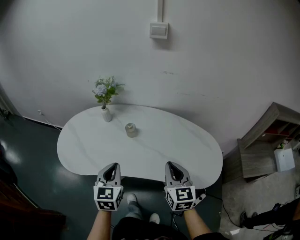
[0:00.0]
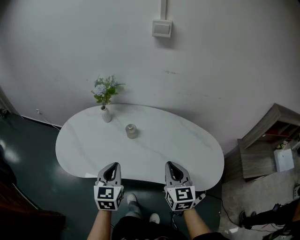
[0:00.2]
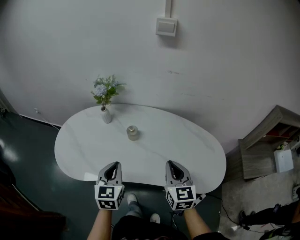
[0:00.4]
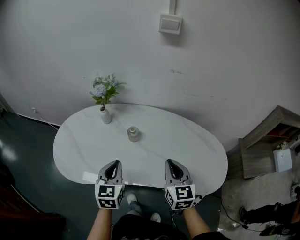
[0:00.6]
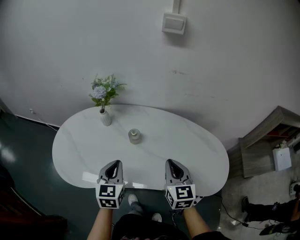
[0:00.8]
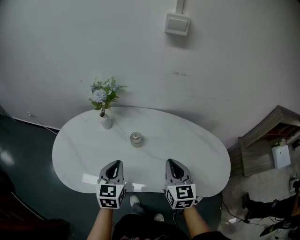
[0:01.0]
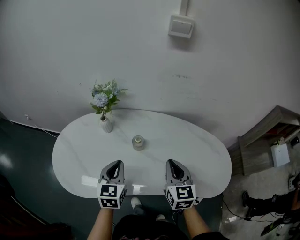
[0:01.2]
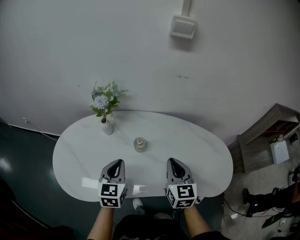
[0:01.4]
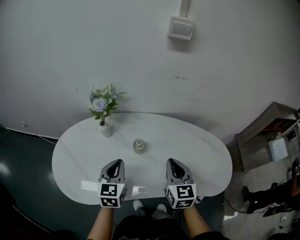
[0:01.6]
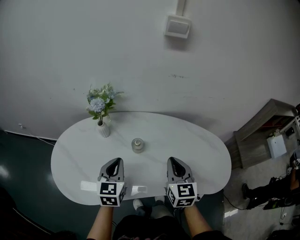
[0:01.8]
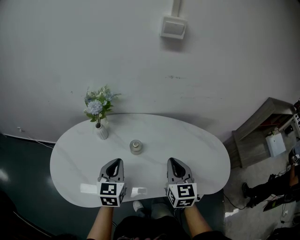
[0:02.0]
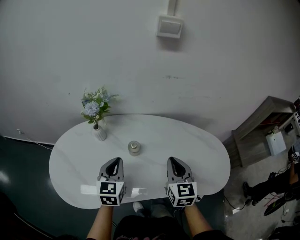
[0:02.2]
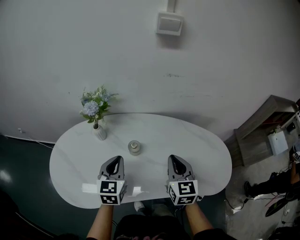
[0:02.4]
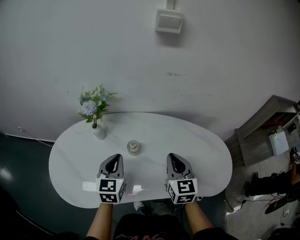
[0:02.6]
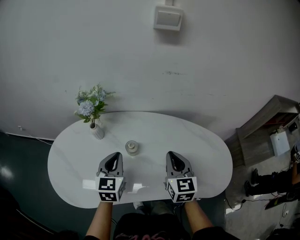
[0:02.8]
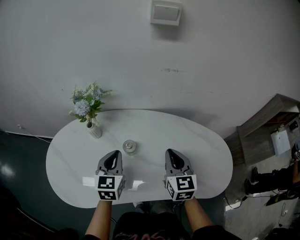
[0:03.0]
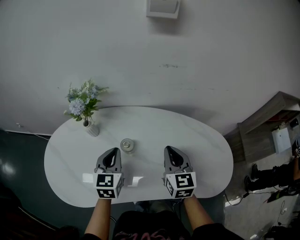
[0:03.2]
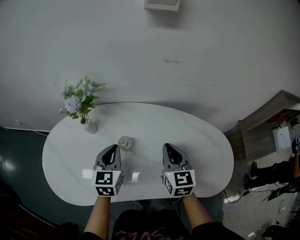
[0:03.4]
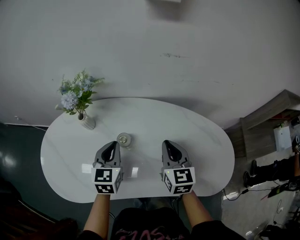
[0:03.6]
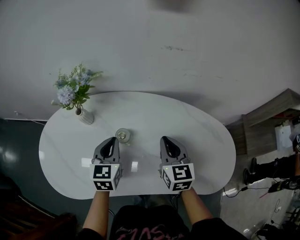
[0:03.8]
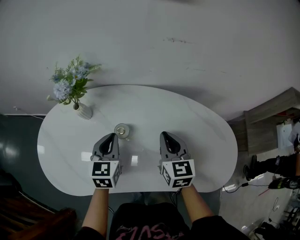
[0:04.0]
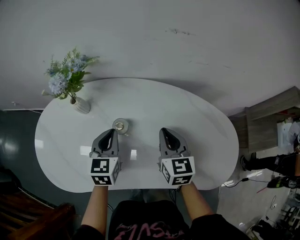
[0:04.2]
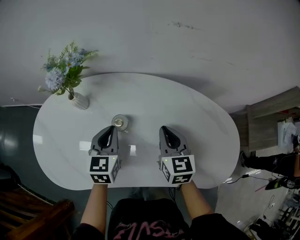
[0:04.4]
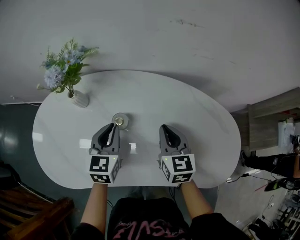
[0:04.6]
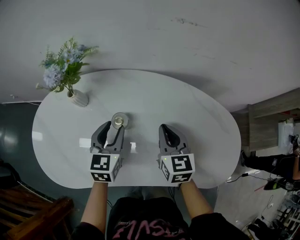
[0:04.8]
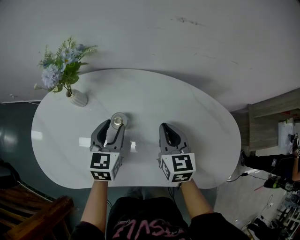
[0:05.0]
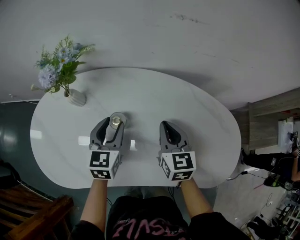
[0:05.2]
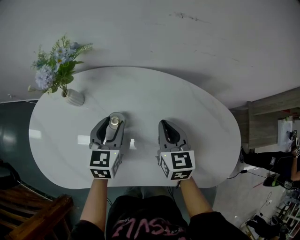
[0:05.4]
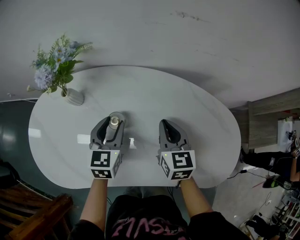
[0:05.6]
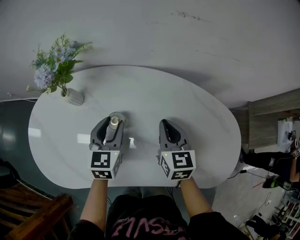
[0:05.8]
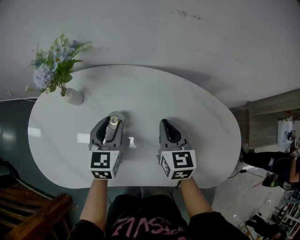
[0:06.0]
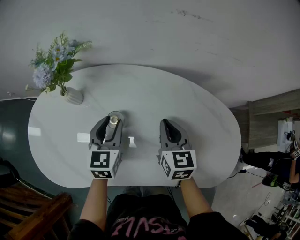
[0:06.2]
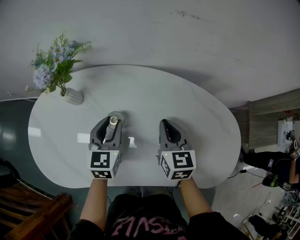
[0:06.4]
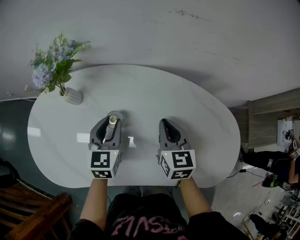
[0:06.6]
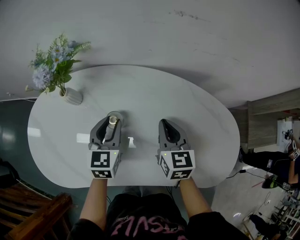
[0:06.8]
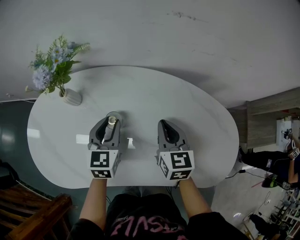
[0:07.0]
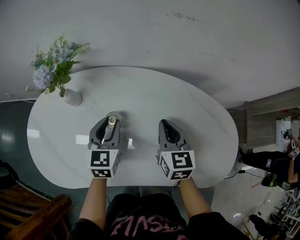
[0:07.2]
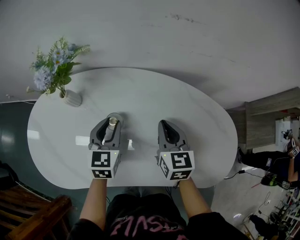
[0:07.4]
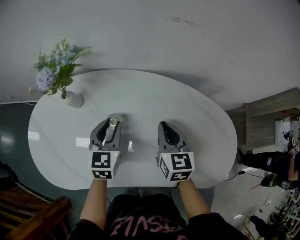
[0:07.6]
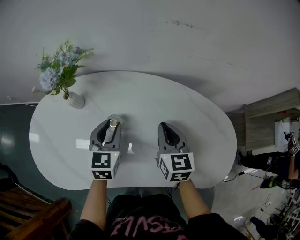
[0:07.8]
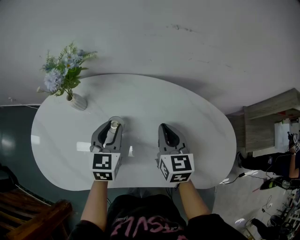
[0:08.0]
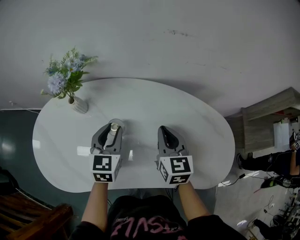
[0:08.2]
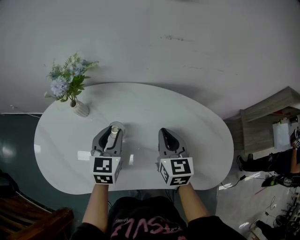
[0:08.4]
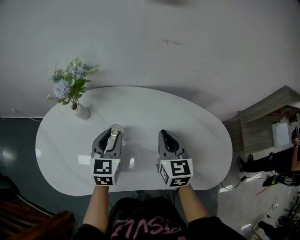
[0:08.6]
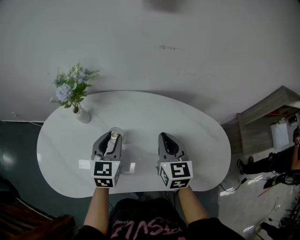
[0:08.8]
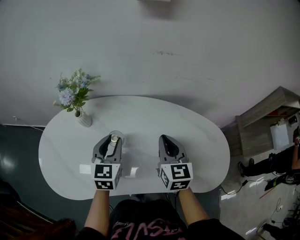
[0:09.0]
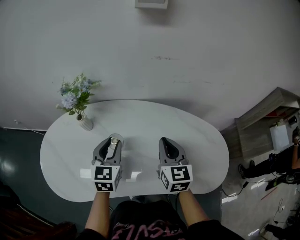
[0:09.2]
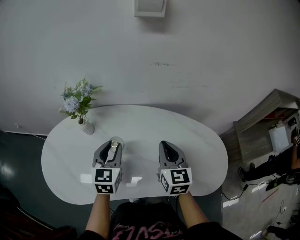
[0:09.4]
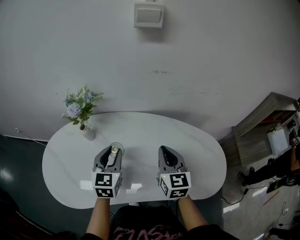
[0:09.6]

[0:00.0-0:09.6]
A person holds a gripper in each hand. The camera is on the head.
0:00.0 to 0:01.6: Both grippers move forward and to the left, some 15 cm.
0:01.6 to 0:03.2: Both grippers move forward, approximately 10 cm.
0:03.2 to 0:04.8: The two grippers go roughly 5 cm downward. The left gripper opens.
0:04.8 to 0:08.0: There are only small adjustments of the grippers.
0:08.0 to 0:09.6: The grippers both shift upward by about 10 cm.

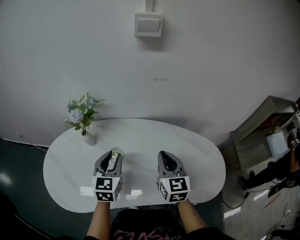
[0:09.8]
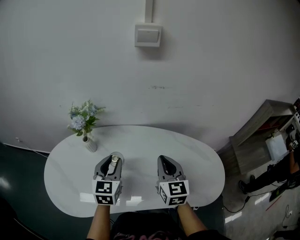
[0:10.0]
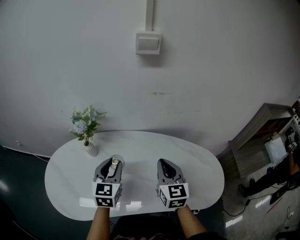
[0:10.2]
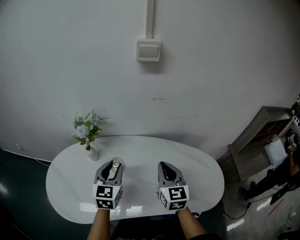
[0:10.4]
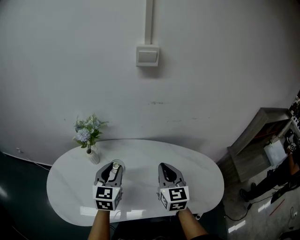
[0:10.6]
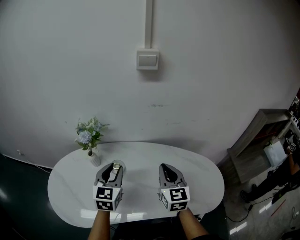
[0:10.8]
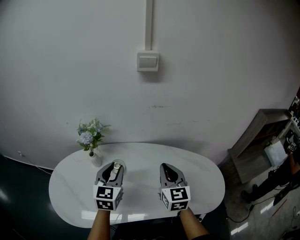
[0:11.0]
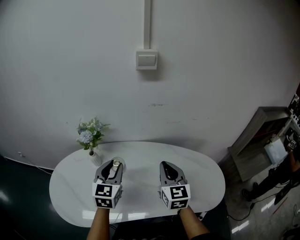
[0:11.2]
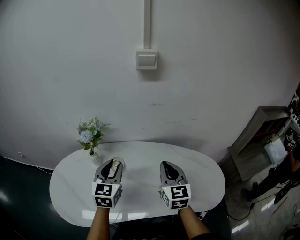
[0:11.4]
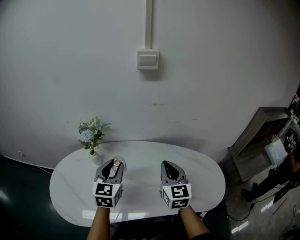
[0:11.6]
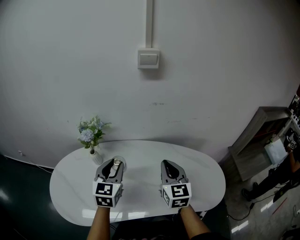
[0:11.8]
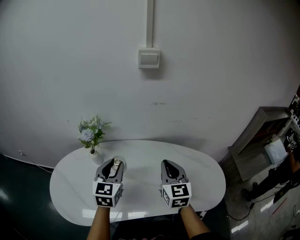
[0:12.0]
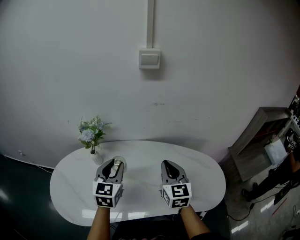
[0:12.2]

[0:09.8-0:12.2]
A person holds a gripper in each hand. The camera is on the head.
0:09.8 to 0:11.0: The two grippers go roughly 5 cm upward.
0:11.0 to 0:12.2: Both grippers stay about where they are.

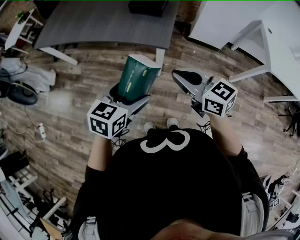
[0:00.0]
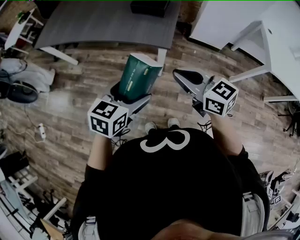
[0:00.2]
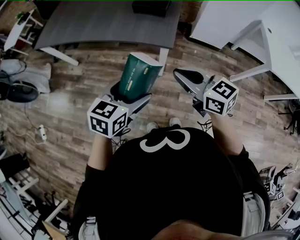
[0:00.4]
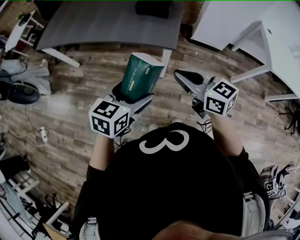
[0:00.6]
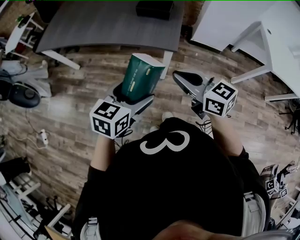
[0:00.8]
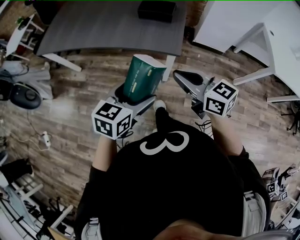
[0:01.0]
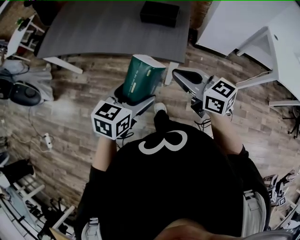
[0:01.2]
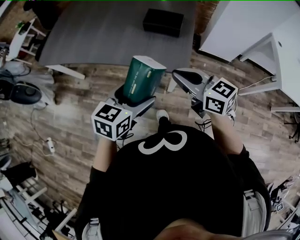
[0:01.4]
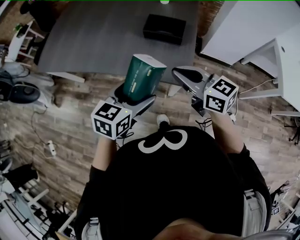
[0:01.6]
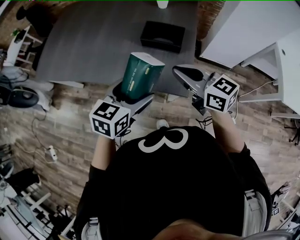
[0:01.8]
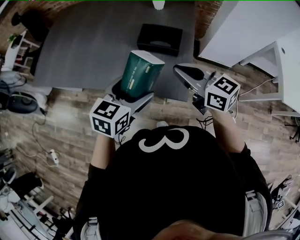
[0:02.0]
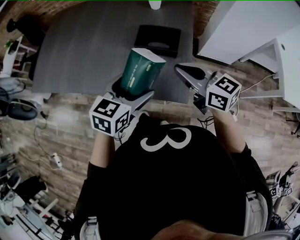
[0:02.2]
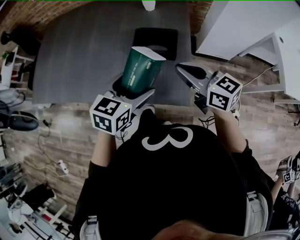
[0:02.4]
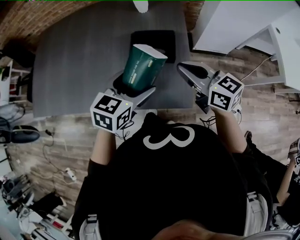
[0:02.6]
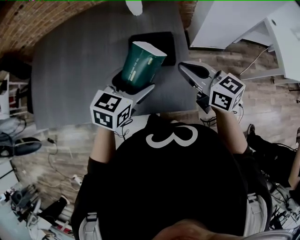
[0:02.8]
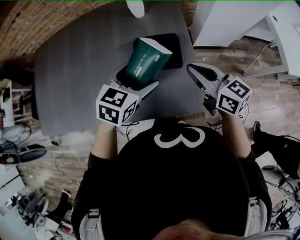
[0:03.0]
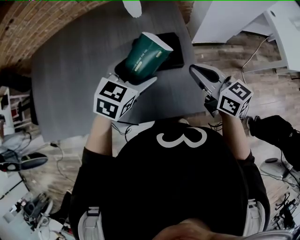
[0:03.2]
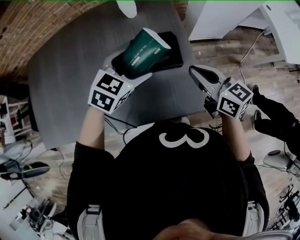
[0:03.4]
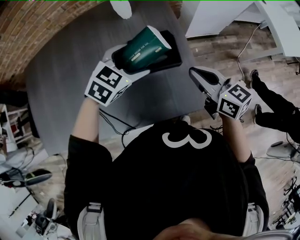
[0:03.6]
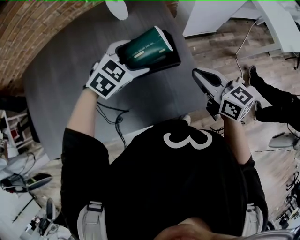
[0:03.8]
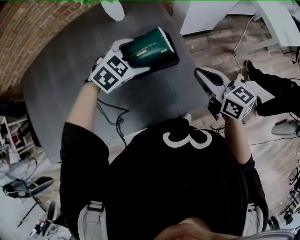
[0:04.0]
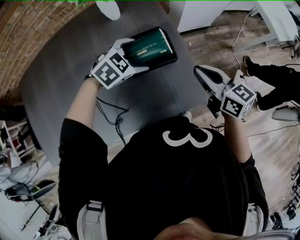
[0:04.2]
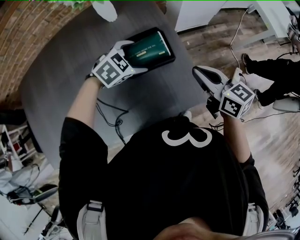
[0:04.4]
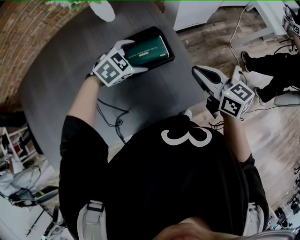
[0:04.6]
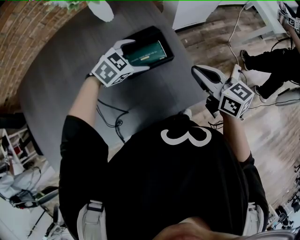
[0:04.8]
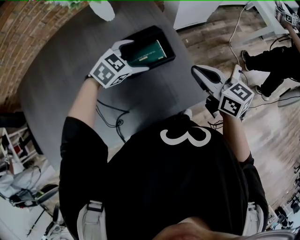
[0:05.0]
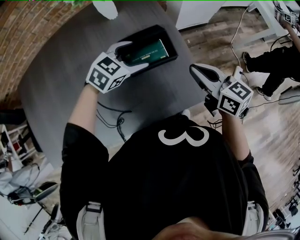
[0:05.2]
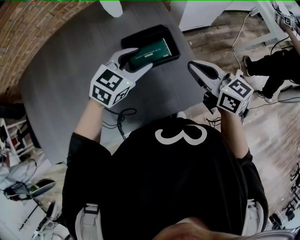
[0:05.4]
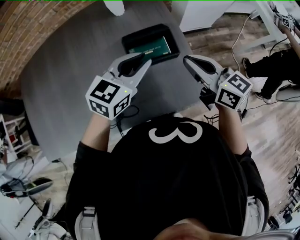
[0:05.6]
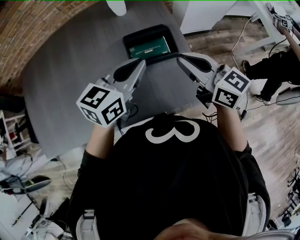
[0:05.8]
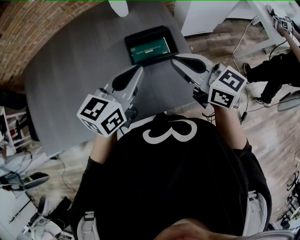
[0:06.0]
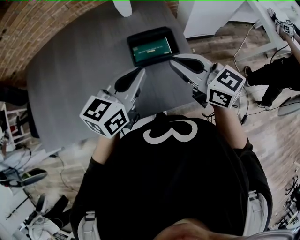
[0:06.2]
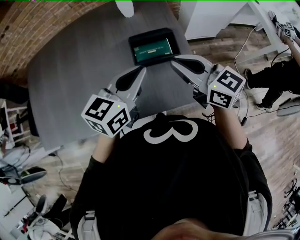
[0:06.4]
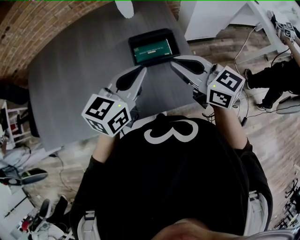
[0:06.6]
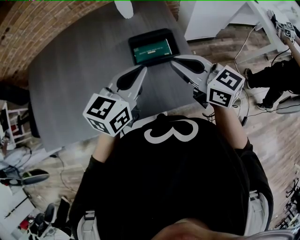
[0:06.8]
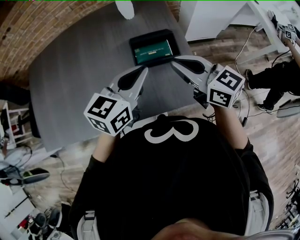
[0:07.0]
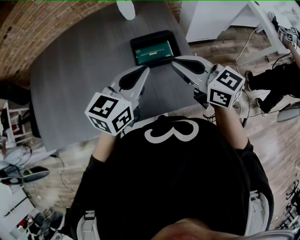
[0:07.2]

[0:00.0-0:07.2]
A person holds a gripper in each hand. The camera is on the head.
0:00.0 to 0:01.4: The grippers both shift forward by approximately 15 cm.
0:01.4 to 0:02.8: The two grippers go roughly 25 cm forward. The right gripper turns by about 20 degrees.
0:02.8 to 0:04.4: The left gripper moves about 15 cm, and rotates some 50 degrees, while the right gripper goes some 5 cm downward, and changes its angle by approximately 30 degrees.
0:04.4 to 0:05.8: The left gripper shifts some 15 cm upward and backward, points its fingers about 40 degrees further upward, and closes up. Meanwhile the right gripper heads to the left and upward, covering roughly 10 cm.
0:05.8 to 0:07.2: The grippers make only small movements.

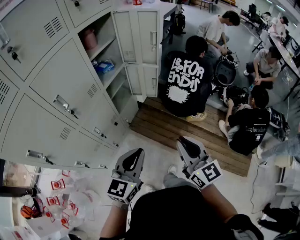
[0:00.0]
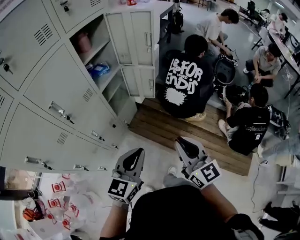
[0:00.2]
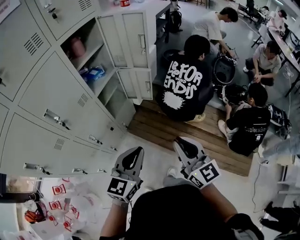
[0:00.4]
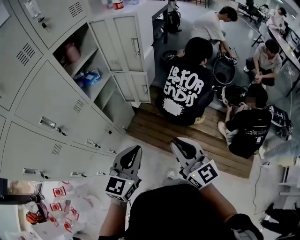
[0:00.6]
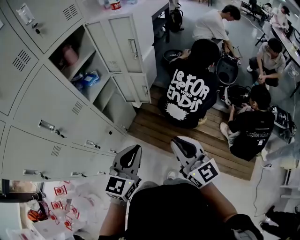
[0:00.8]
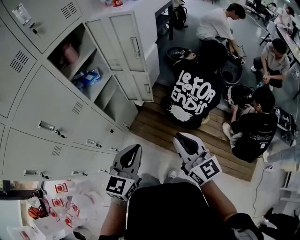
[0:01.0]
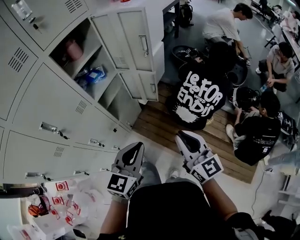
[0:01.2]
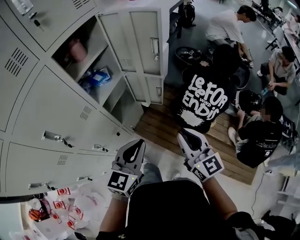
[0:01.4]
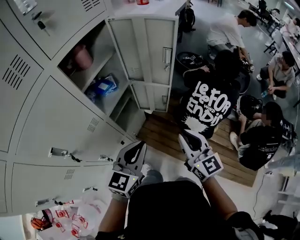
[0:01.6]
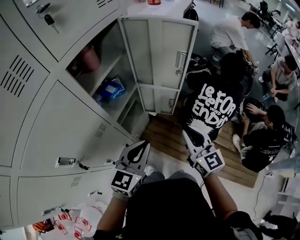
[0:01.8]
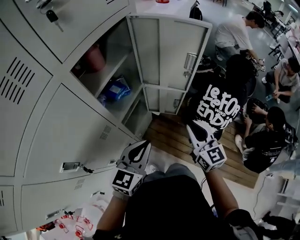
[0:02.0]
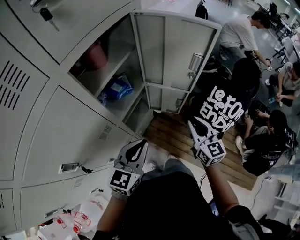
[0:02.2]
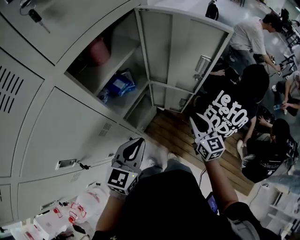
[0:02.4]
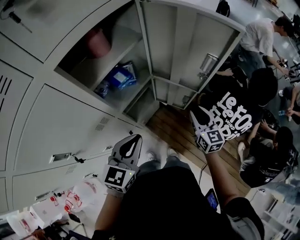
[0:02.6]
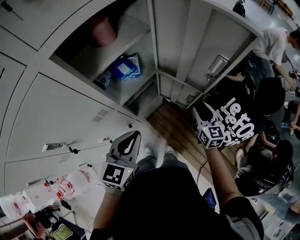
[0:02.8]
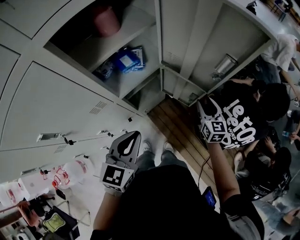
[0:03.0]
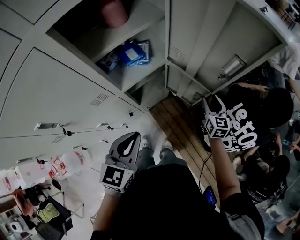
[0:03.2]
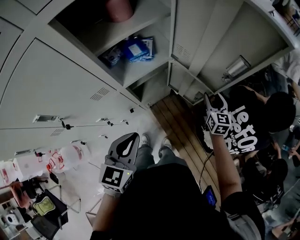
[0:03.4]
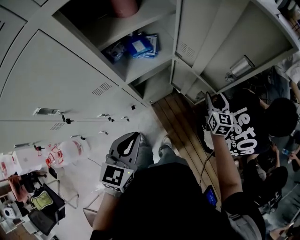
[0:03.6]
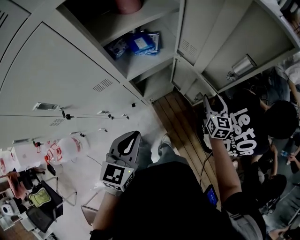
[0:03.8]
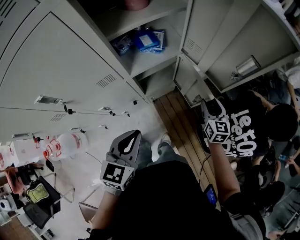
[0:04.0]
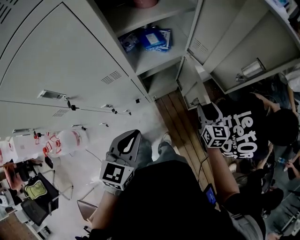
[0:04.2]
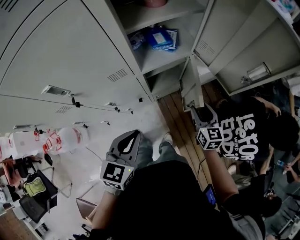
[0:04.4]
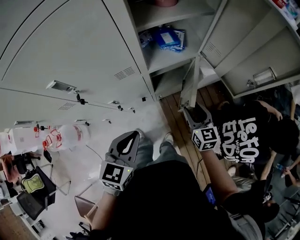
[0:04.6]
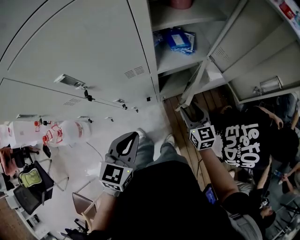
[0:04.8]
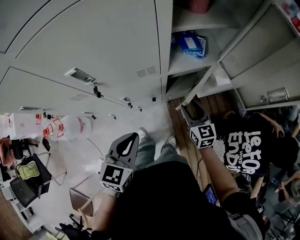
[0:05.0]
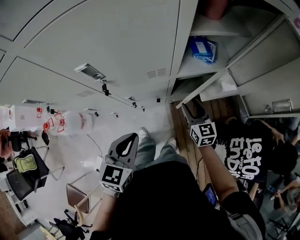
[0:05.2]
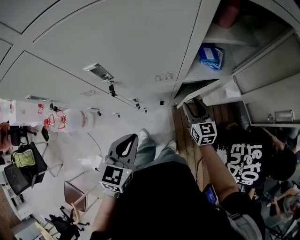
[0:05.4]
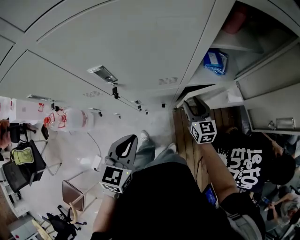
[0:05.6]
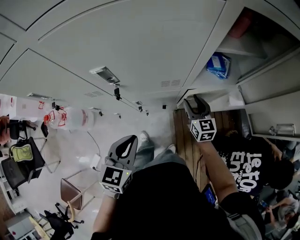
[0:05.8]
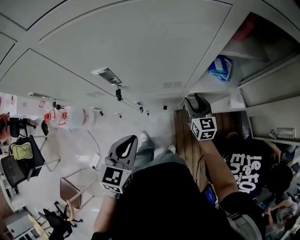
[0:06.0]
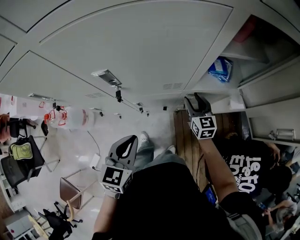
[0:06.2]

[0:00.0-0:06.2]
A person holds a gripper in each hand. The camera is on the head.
0:00.0 to 0:01.6: The two grippers go roughly 25 cm forward.
0:01.6 to 0:03.2: The left gripper shifts approximately 10 cm downward, to the left and forward, and swivels roughly 30 degrees. The right gripper goes some 35 cm forward and downward, and opens its fingers.
0:03.2 to 0:04.6: The left gripper heads backward and to the left, covering some 10 cm, while the right gripper goes approximately 20 cm to the left and backward, and changes its angle by roughly 30 degrees.
0:04.6 to 0:06.2: The right gripper travels forward and to the left by about 20 cm, while the left gripper shifts about 10 cm to the left.
